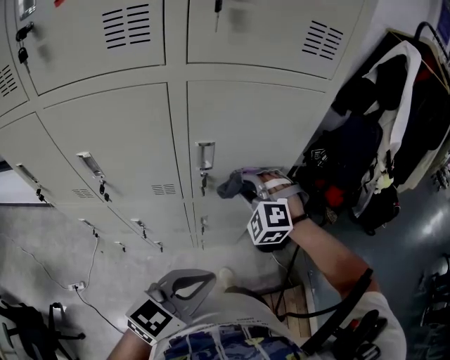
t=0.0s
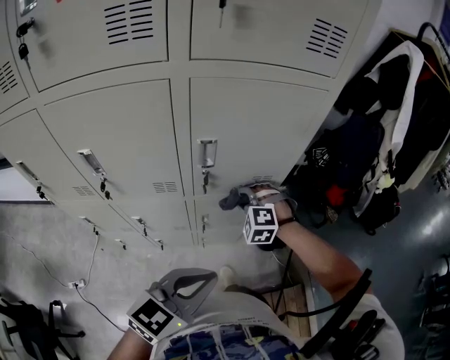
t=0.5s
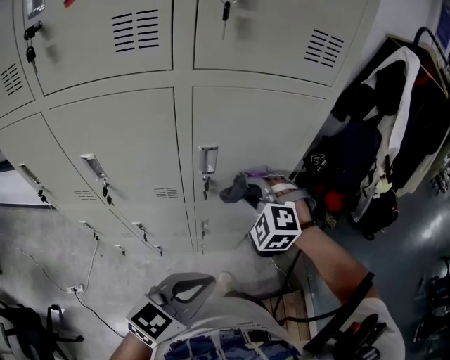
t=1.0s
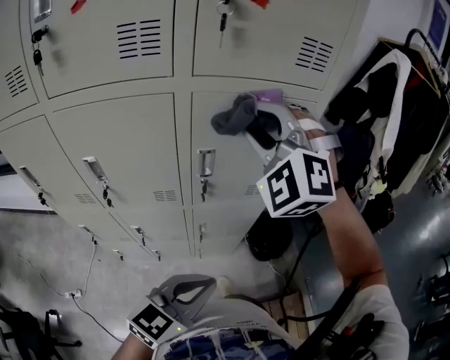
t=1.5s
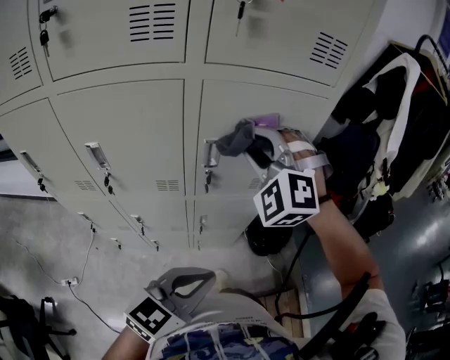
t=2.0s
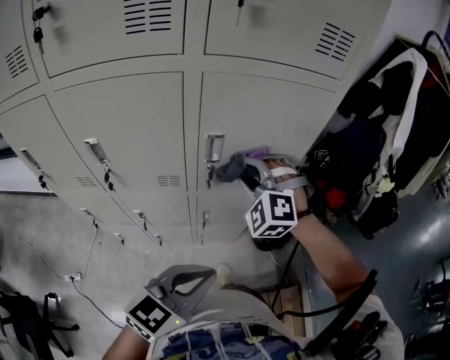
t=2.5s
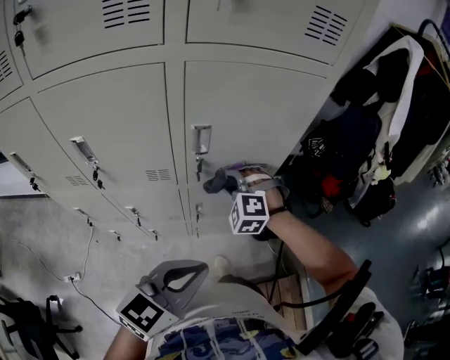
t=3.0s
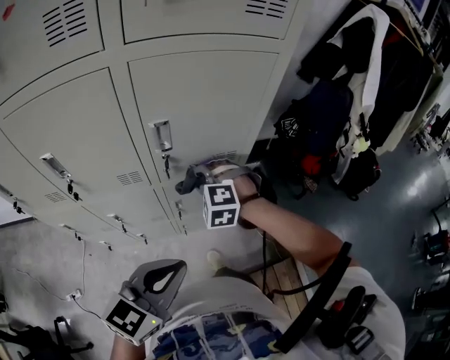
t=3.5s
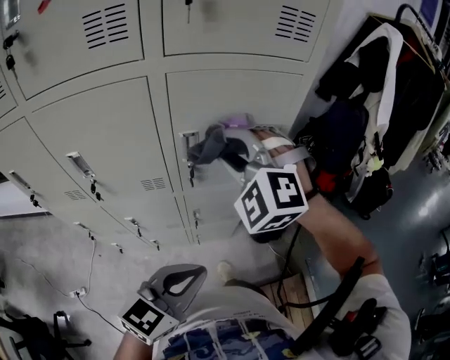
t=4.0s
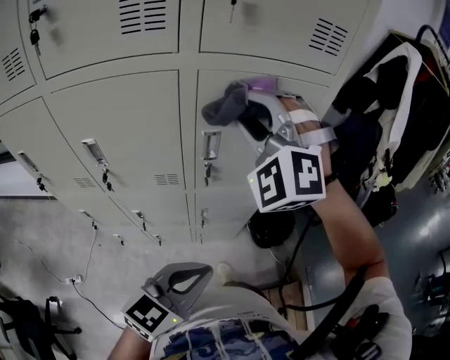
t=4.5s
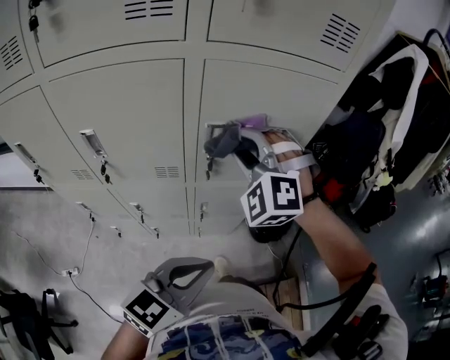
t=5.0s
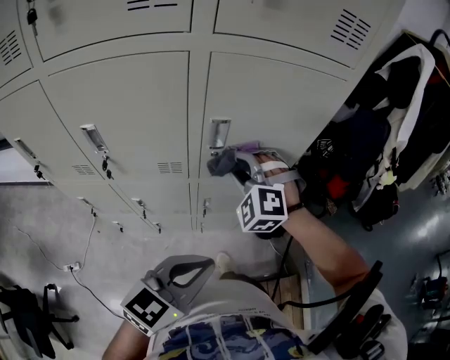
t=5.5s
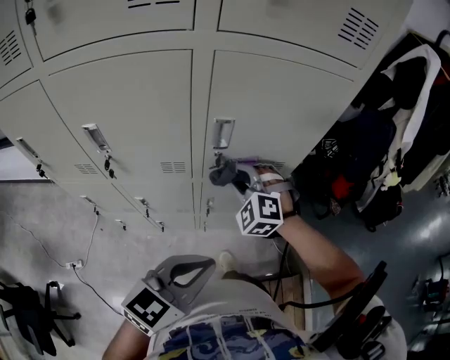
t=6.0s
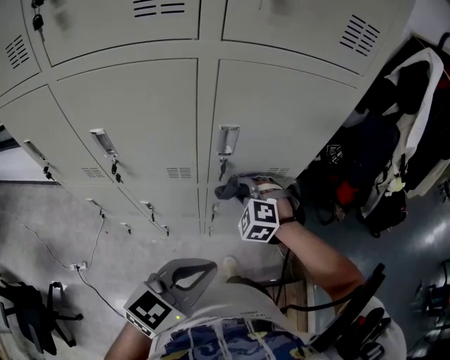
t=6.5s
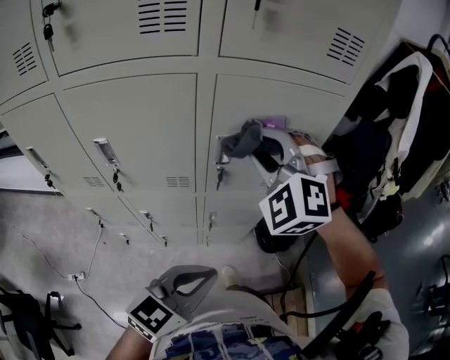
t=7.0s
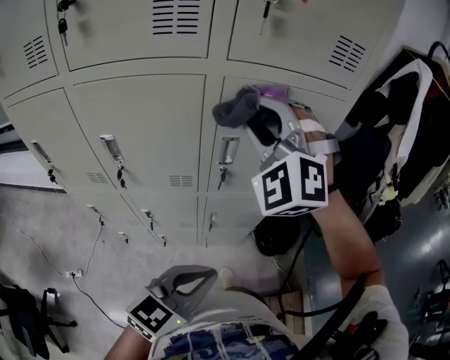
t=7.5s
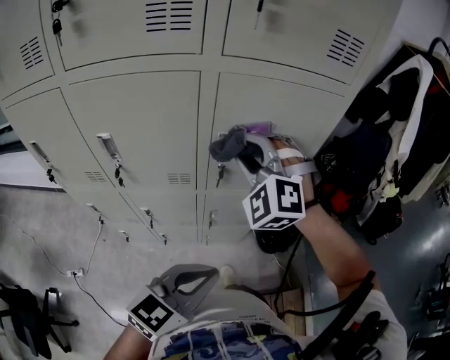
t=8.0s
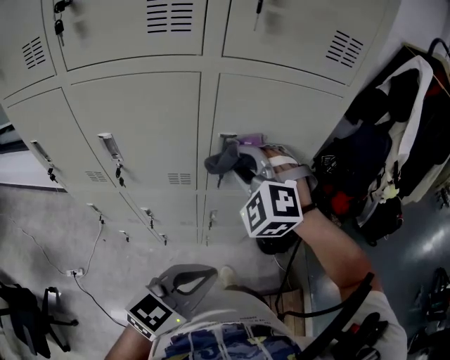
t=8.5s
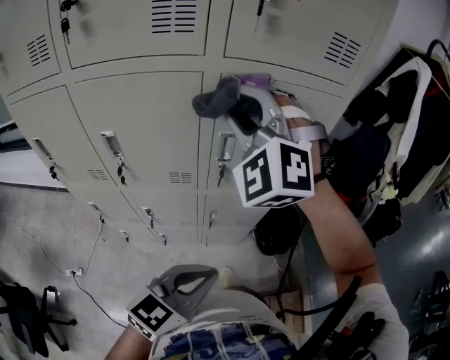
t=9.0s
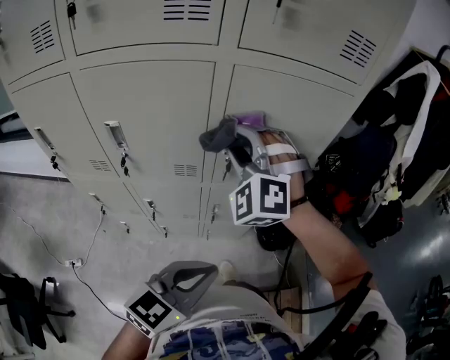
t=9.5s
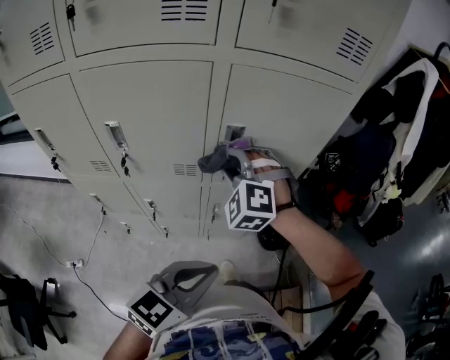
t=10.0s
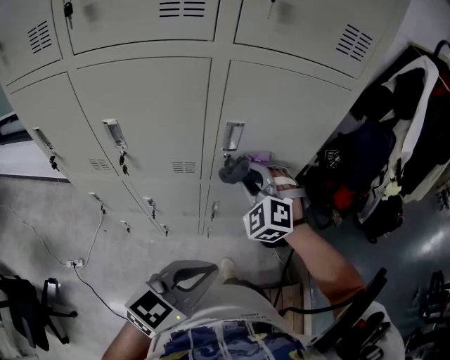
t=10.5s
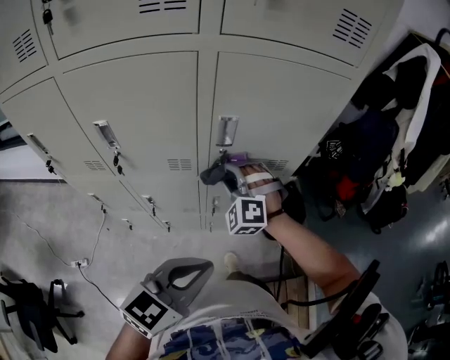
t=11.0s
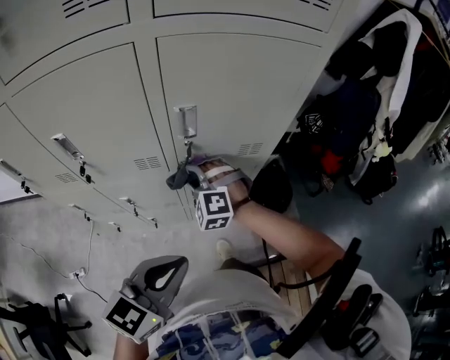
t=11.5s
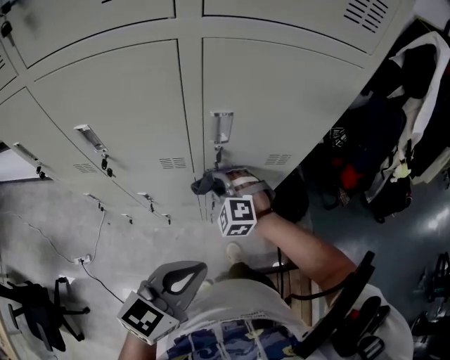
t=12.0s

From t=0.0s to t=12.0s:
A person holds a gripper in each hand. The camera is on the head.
From t=0.0s to t=2.0s: The right gripper moves up and down over about 40 cm, changing direction 2 times.
From t=2.0s to t=4.0s: The right gripper moves some 25 cm downward and comes back.
From t=4.0s to t=6.0s: The right gripper is displaced downward by about 20 cm.
From t=6.0s to t=8.0s: The right gripper moves up and down over approximately 35 cm, changing direction 2 times.
From t=8.0s to t=10.0s: The right gripper moves downward, about 10 cm.
From t=10.0s to t=12.0s: The right gripper travels downward by roughly 20 cm.

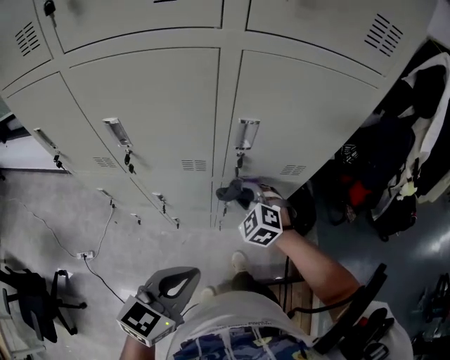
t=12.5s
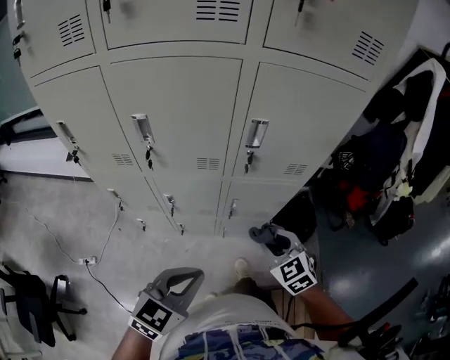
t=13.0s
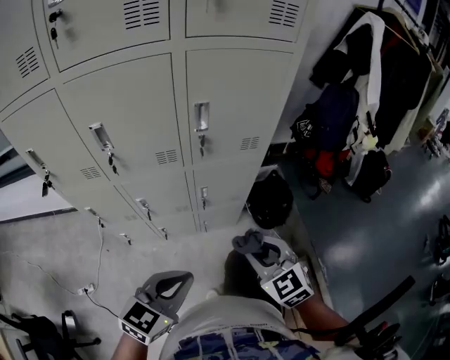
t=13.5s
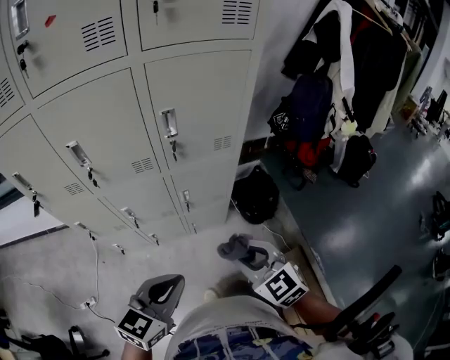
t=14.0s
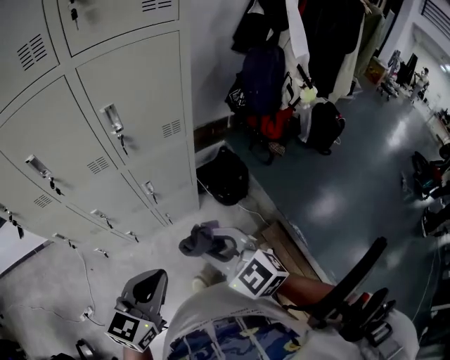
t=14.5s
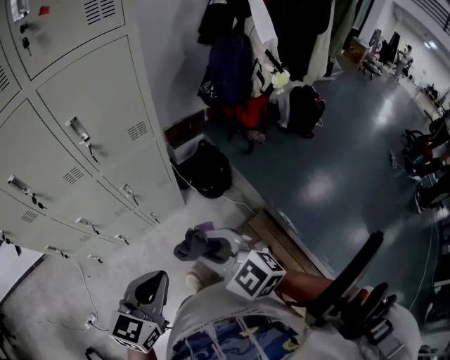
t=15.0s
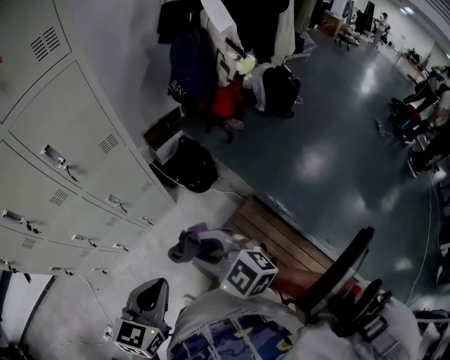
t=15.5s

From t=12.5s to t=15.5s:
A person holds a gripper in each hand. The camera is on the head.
From t=12.5s to t=14.0s: The left gripper shifts approximately 10 cm backward, while the right gripper travels backward and to the right by about 30 cm, and rotates some 40 degrees.
From t=14.0s to t=15.5s: The left gripper goes some 15 cm to the right; the right gripper travels to the right and backward by roughly 15 cm.

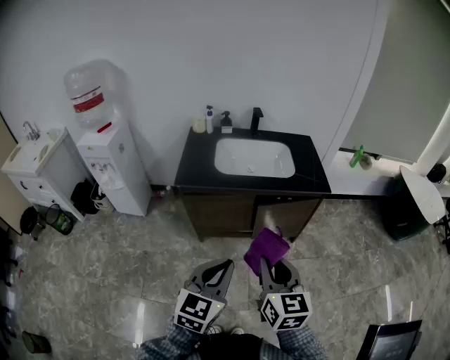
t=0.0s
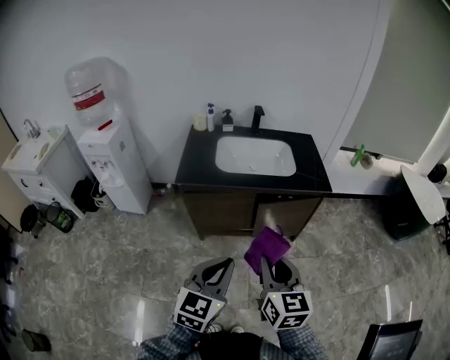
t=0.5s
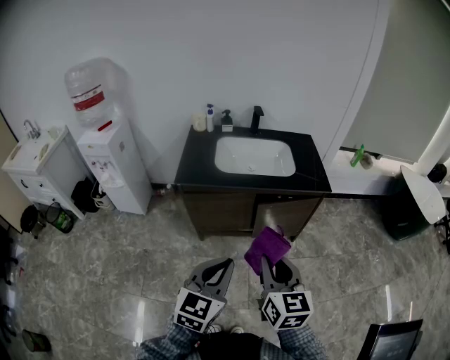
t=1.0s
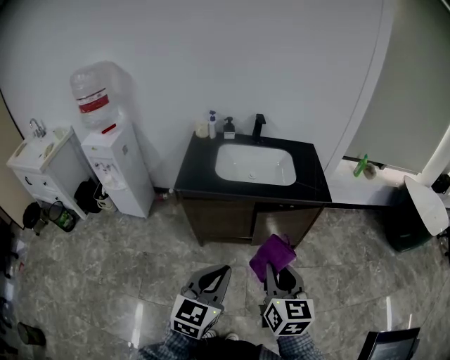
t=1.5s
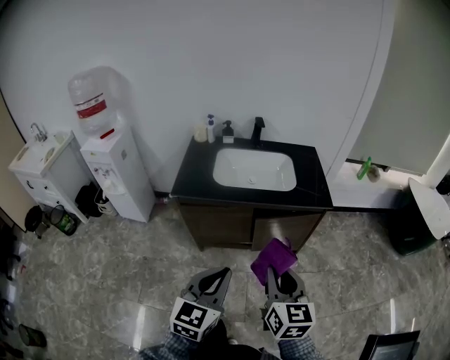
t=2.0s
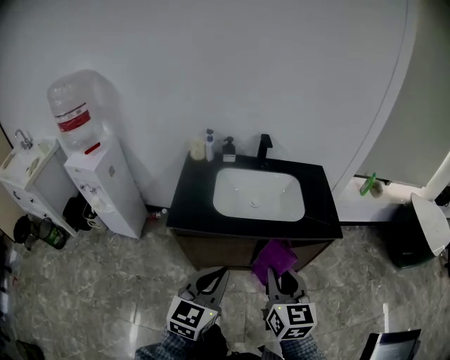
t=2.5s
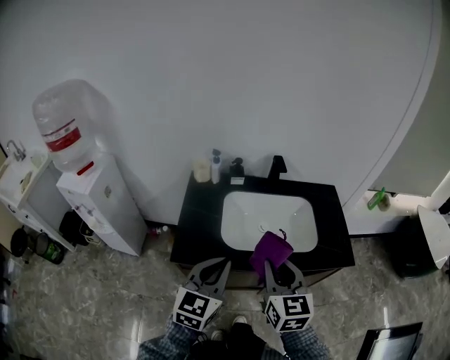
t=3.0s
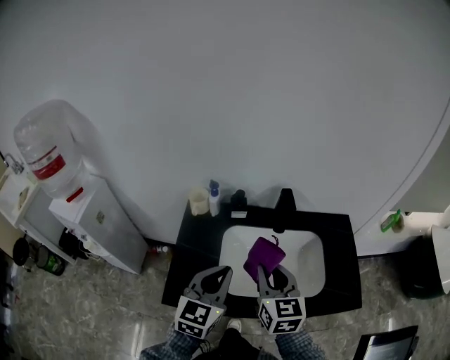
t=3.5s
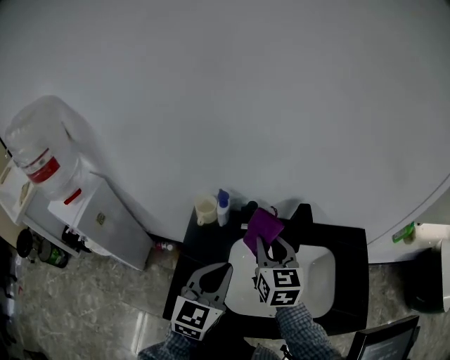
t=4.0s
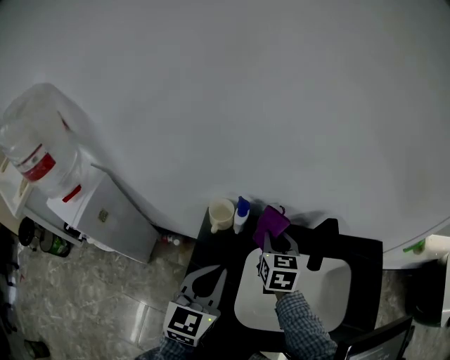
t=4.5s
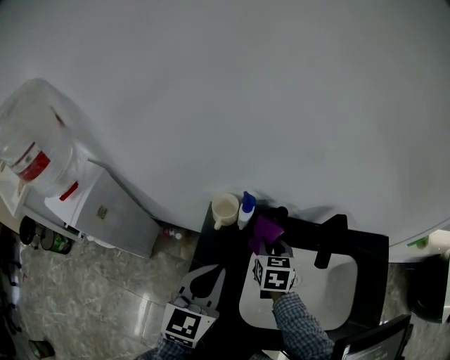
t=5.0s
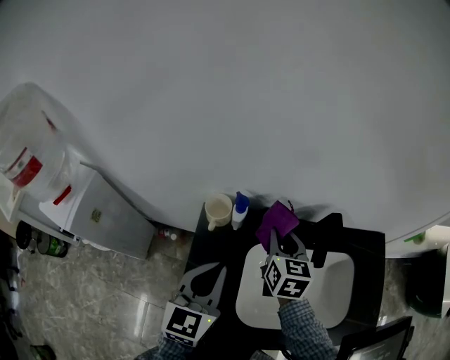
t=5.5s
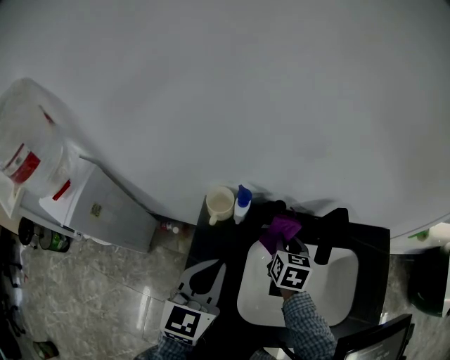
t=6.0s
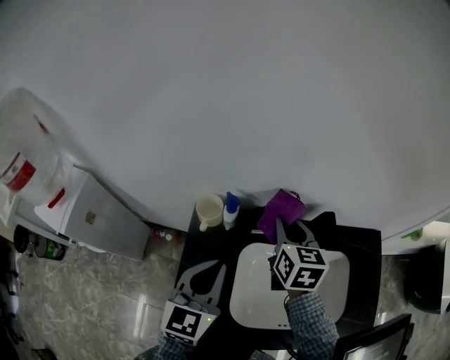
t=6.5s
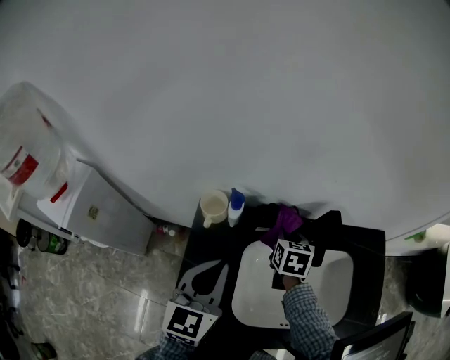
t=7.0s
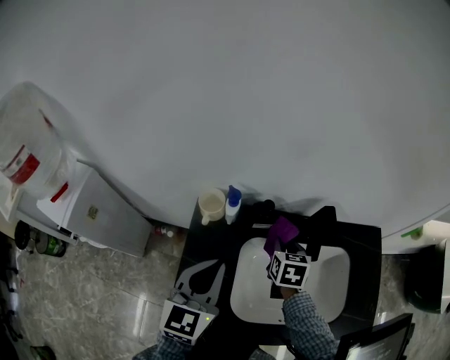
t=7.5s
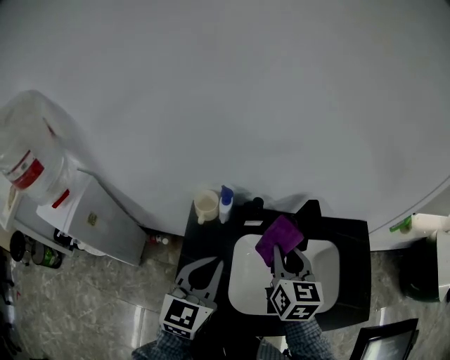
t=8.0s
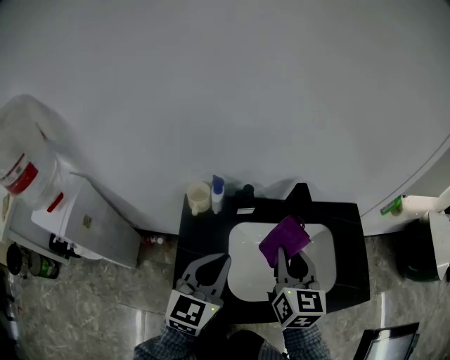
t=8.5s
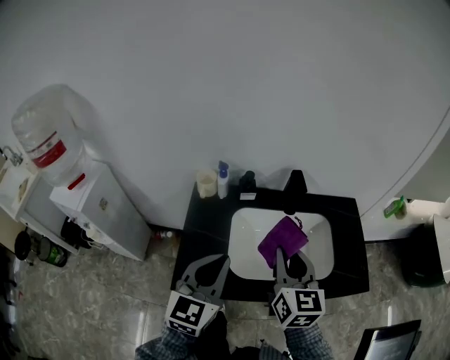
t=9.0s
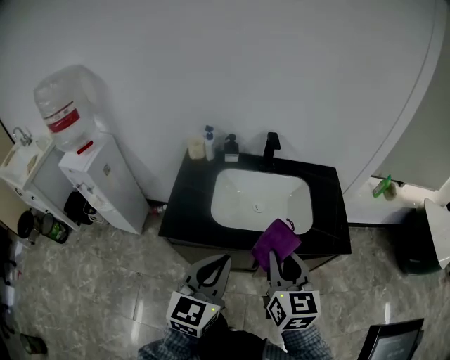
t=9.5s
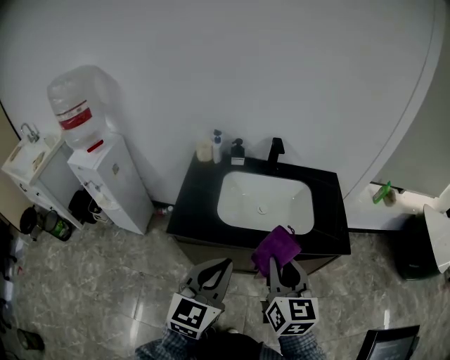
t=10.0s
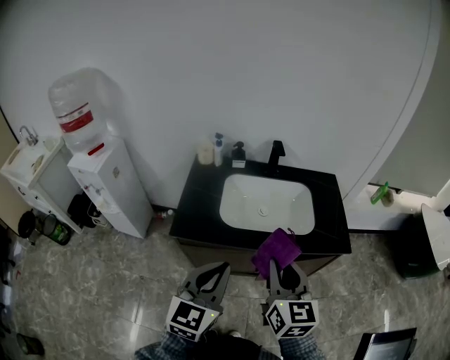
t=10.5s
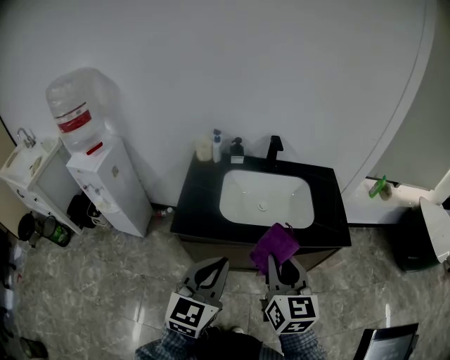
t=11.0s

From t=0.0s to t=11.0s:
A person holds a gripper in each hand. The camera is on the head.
From t=0.0s to t=2.0s: The right gripper moves to the right, roughly 5 cm; the left gripper ends up roughly 5 cm from where it was.
From t=2.0s to t=3.5s: Both grippers are carried forward, roughly 60 cm.
From t=3.5s to t=5.5s: The right gripper heads forward, covering approximately 25 cm. Meanwhile the left gripper moves forward and to the left, about 20 cm.
From t=5.5s to t=7.5s: The right gripper goes up and down, about 10 cm each way, reversing 2 times.
From t=7.5s to t=9.0s: The right gripper is displaced backward and upward by about 30 cm, and points its fingers about 30 degrees further upward. The left gripper goes some 20 cm backward and to the right.
From t=9.0s to t=11.0s: The grippers both shift backward by some 25 cm.

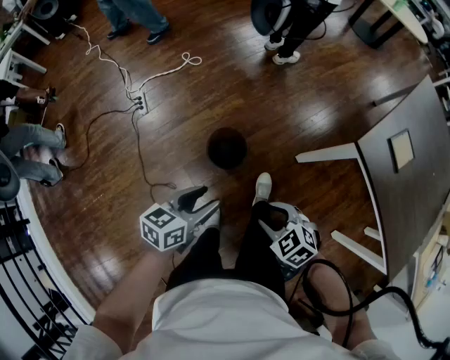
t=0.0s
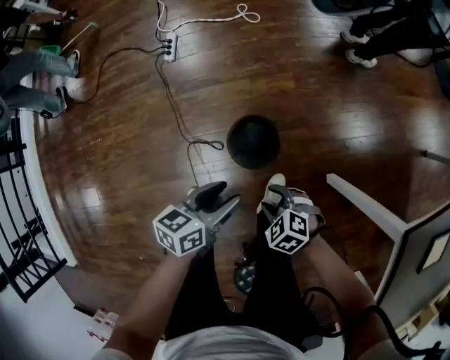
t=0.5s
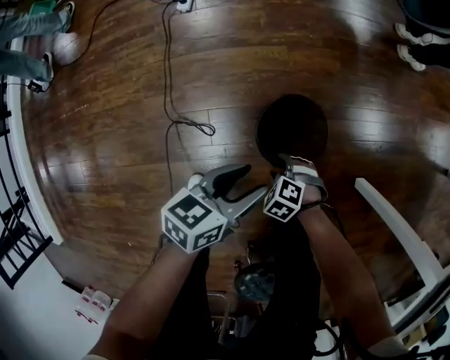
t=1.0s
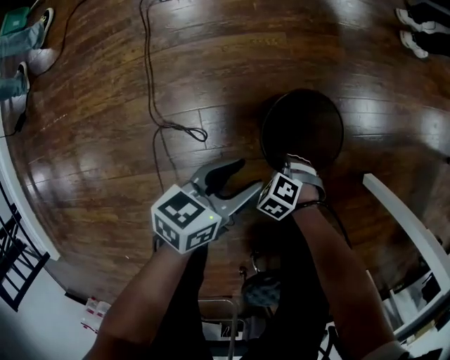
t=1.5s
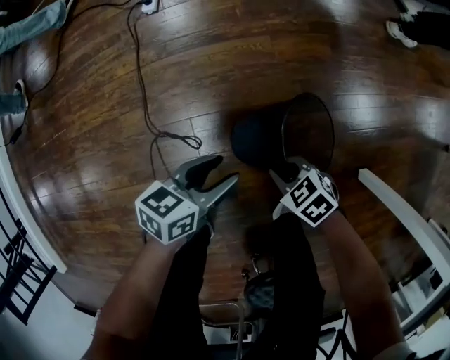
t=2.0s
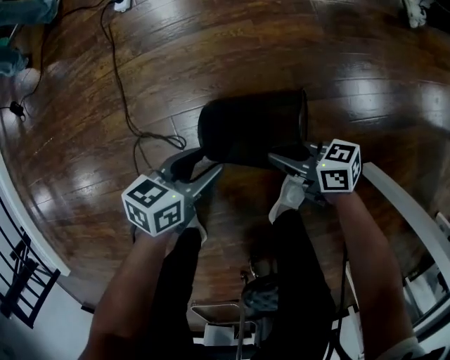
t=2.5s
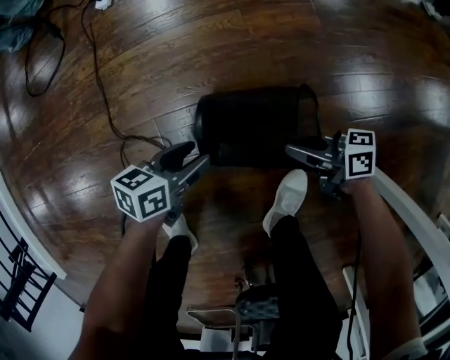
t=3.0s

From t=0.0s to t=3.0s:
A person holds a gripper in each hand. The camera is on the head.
From t=0.0s to t=1.5s: The two grippers go some 40 cm downward. The right gripper swivels roughly 40 degrees, and closes up.
From t=1.5s to t=3.0s: The left gripper is displaced downward by approximately 15 cm. The right gripper changes place by about 15 cm, and tilts its fingers some 70 degrees upward.
